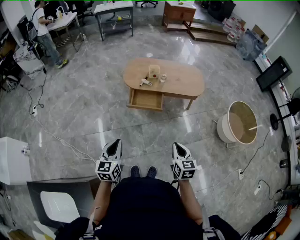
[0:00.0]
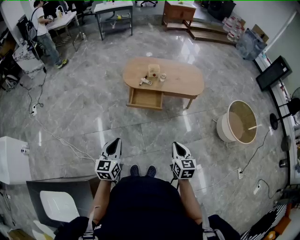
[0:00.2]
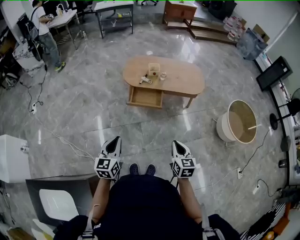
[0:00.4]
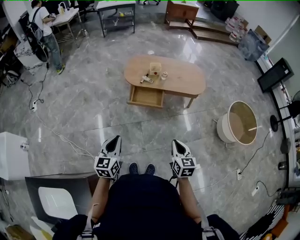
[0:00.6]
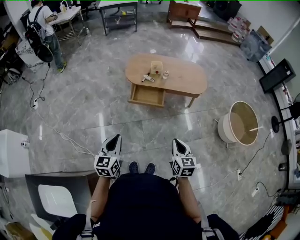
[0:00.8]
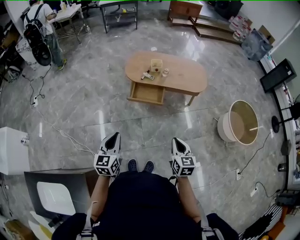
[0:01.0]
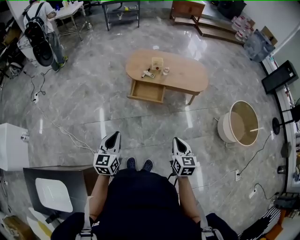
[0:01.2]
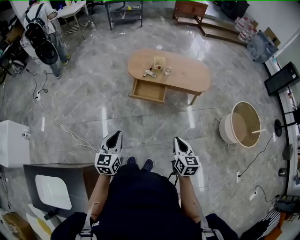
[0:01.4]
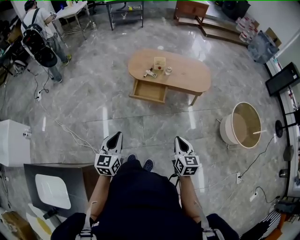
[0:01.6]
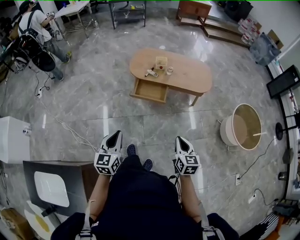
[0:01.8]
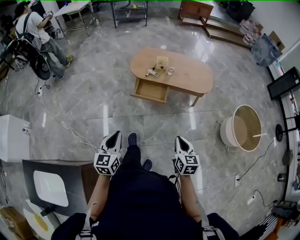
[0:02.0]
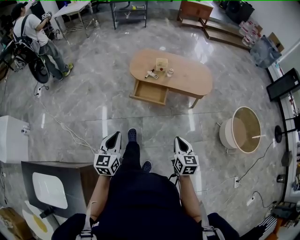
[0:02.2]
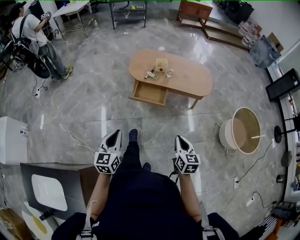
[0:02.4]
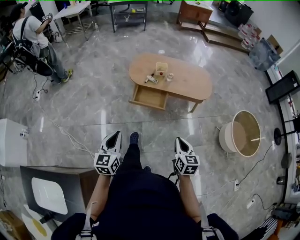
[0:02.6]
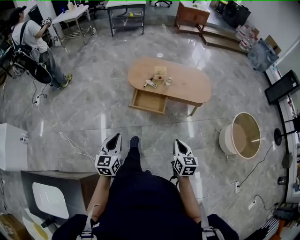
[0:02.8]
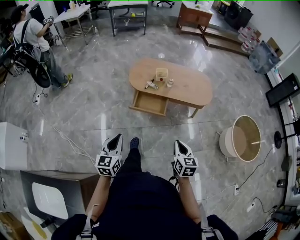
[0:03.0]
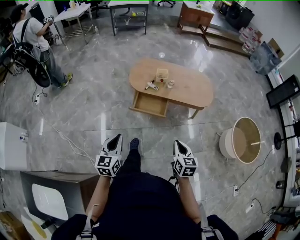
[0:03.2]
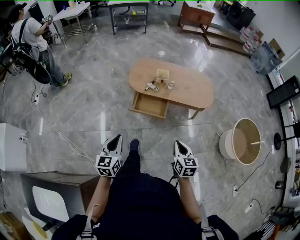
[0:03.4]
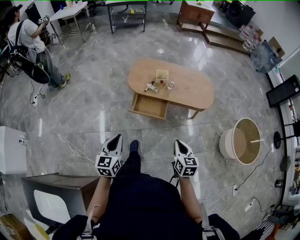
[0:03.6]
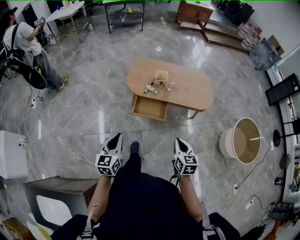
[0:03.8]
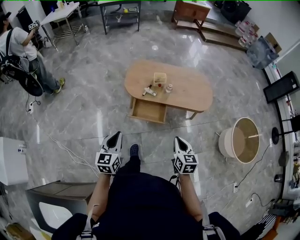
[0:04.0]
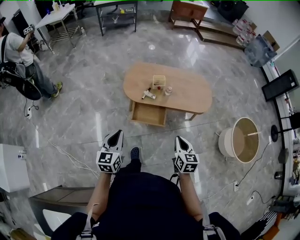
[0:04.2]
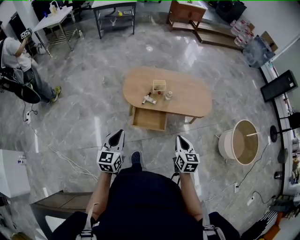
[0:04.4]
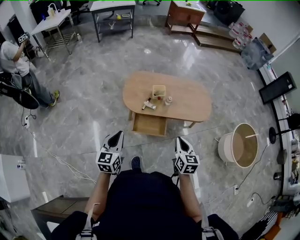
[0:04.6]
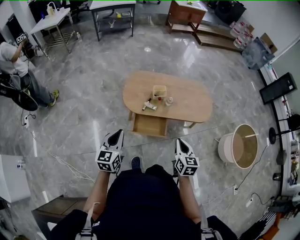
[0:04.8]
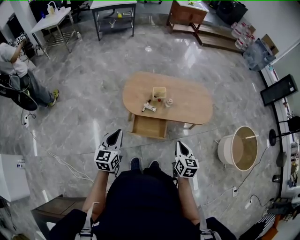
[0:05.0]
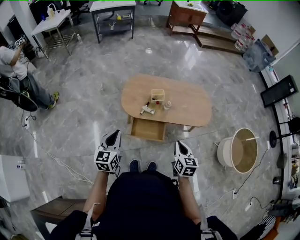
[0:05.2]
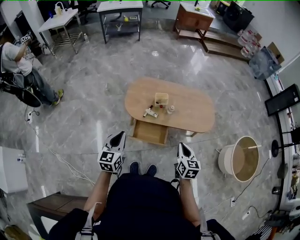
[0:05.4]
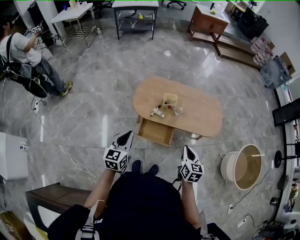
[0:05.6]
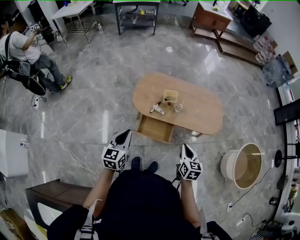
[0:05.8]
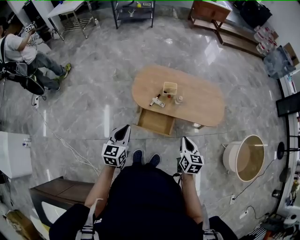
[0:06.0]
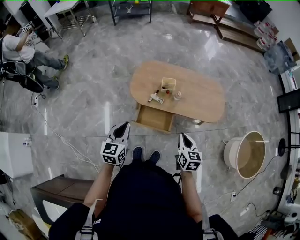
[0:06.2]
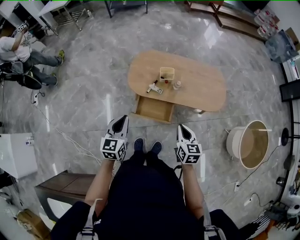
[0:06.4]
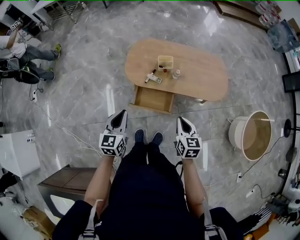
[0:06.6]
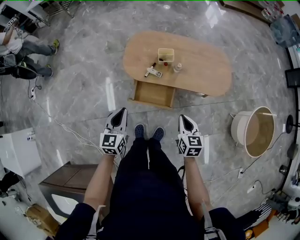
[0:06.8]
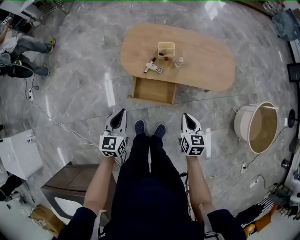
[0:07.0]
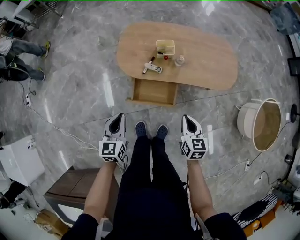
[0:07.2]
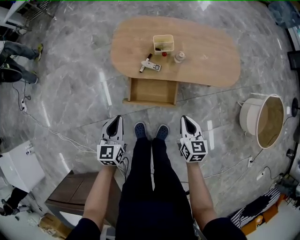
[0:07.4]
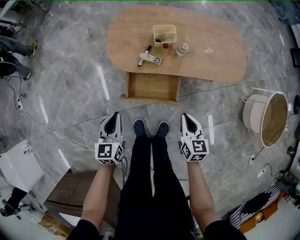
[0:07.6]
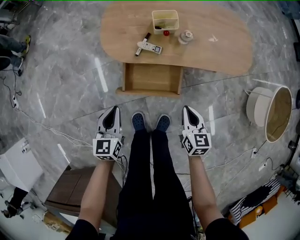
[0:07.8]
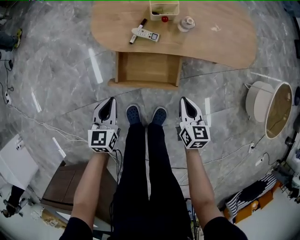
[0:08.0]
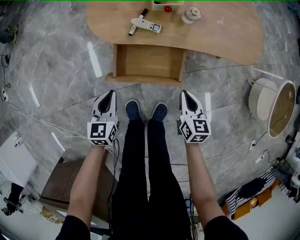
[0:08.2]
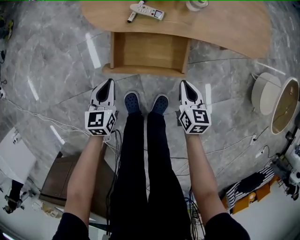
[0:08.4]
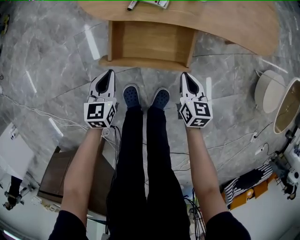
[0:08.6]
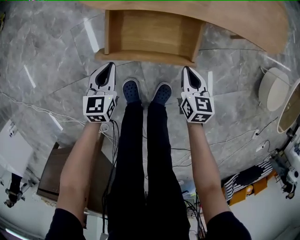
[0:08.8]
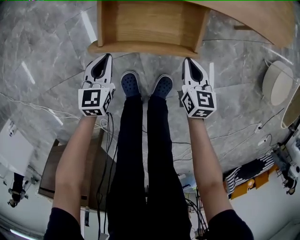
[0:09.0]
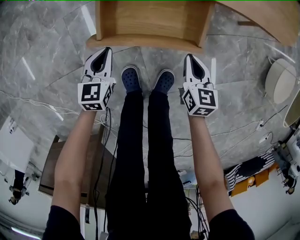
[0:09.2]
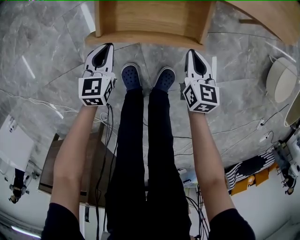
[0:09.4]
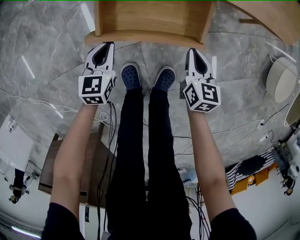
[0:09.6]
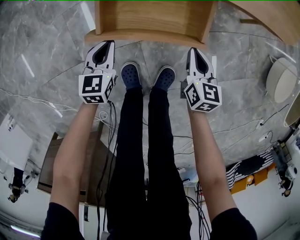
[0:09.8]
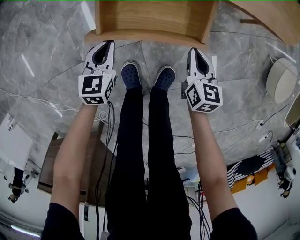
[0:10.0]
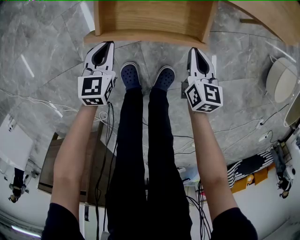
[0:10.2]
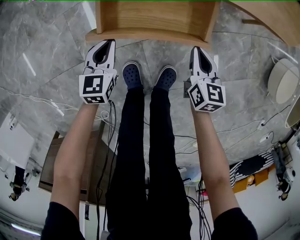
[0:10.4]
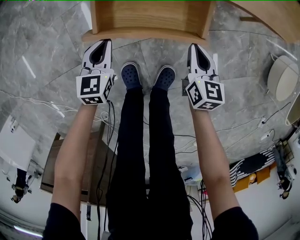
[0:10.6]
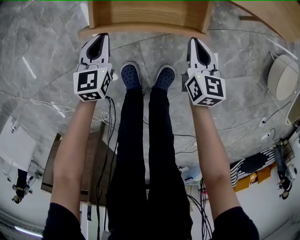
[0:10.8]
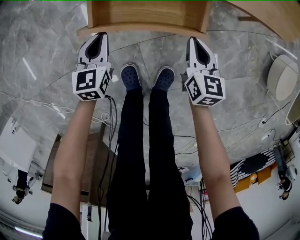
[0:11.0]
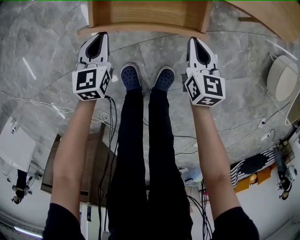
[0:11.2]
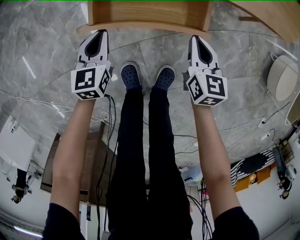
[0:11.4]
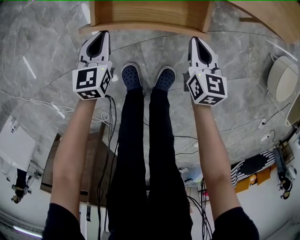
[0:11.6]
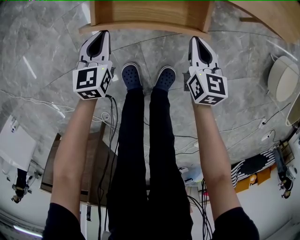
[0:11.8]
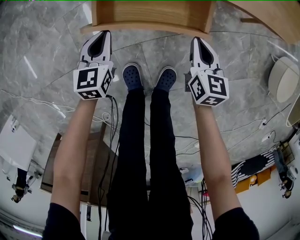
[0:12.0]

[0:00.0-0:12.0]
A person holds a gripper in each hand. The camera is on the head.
0:00.0 to 0:01.6: The left gripper heads to the right, covering about 5 cm.
0:01.6 to 0:03.0: Both grippers travel together forward, some 10 cm.
0:03.0 to 0:04.4: Both grippers travel together forward, approximately 25 cm.
0:04.4 to 0:06.0: The grippers both shift forward by some 10 cm.
0:06.0 to 0:07.6: The grippers both shift downward by some 25 cm.
0:07.6 to 0:09.0: The two grippers go about 30 cm downward.
0:09.0 to 0:12.0: The grippers move only a little.

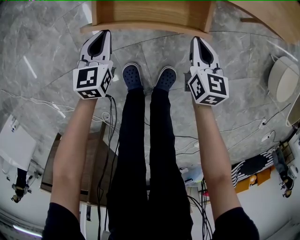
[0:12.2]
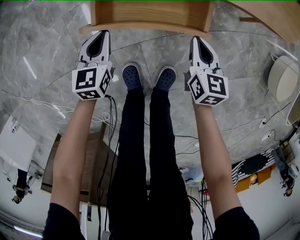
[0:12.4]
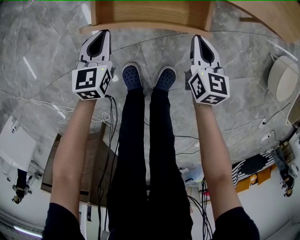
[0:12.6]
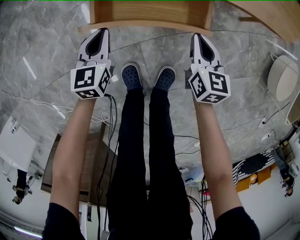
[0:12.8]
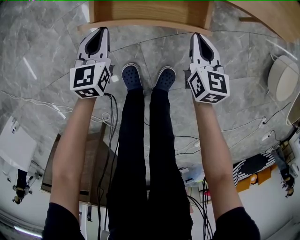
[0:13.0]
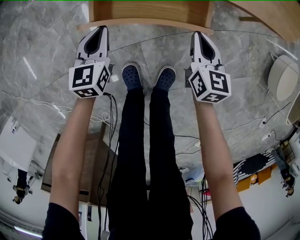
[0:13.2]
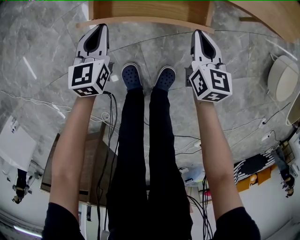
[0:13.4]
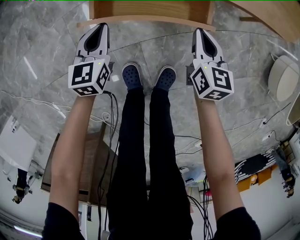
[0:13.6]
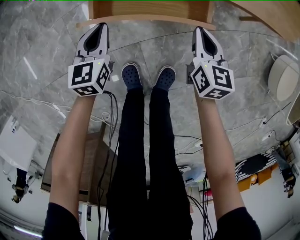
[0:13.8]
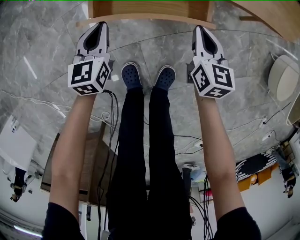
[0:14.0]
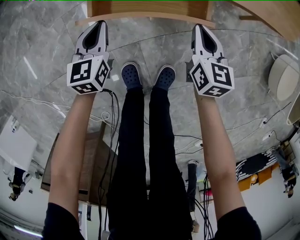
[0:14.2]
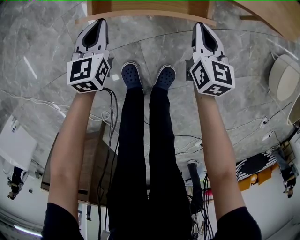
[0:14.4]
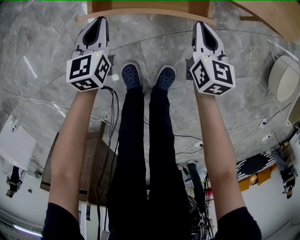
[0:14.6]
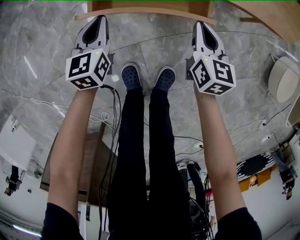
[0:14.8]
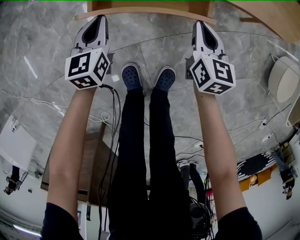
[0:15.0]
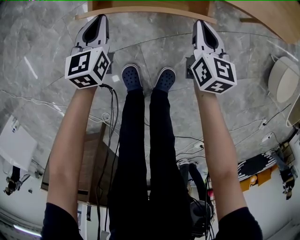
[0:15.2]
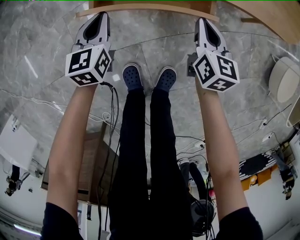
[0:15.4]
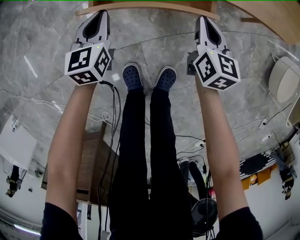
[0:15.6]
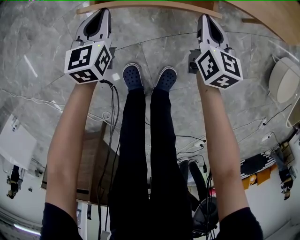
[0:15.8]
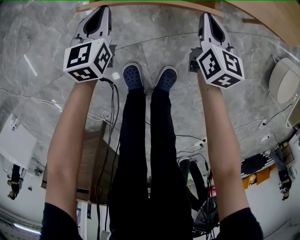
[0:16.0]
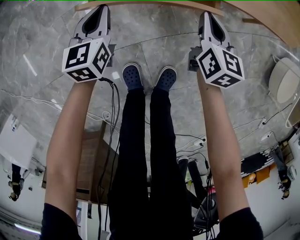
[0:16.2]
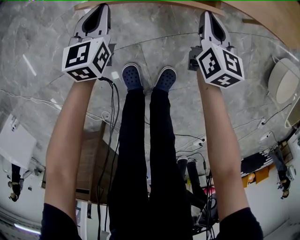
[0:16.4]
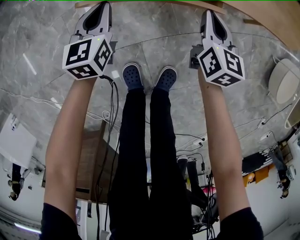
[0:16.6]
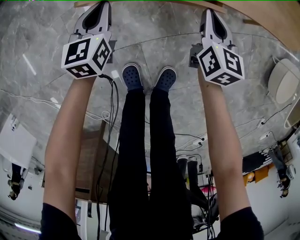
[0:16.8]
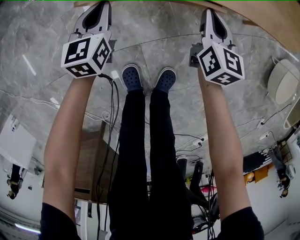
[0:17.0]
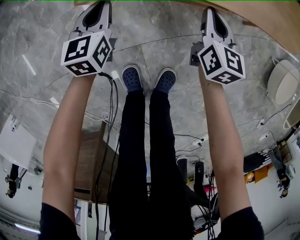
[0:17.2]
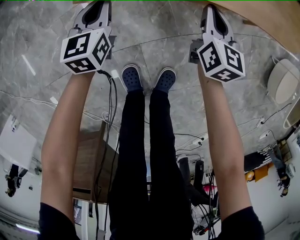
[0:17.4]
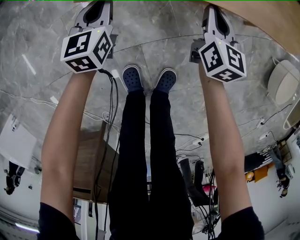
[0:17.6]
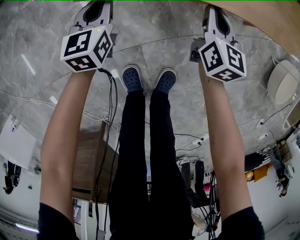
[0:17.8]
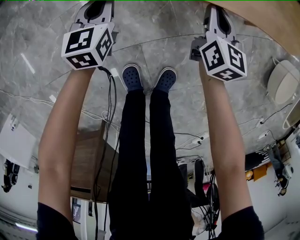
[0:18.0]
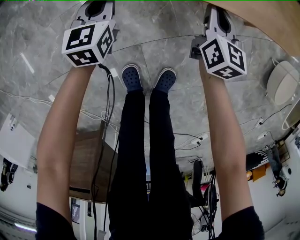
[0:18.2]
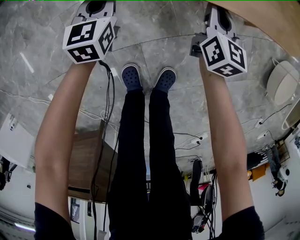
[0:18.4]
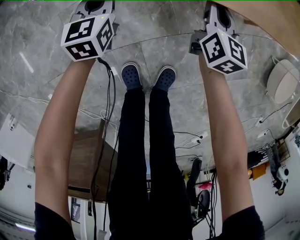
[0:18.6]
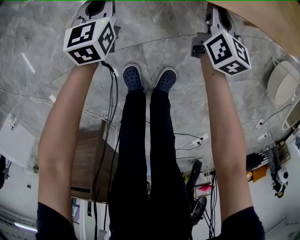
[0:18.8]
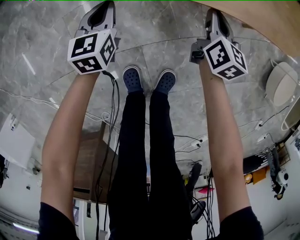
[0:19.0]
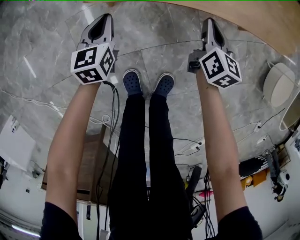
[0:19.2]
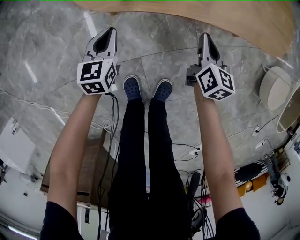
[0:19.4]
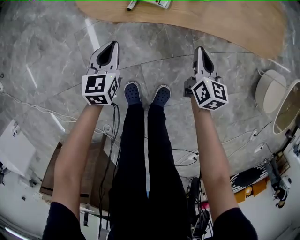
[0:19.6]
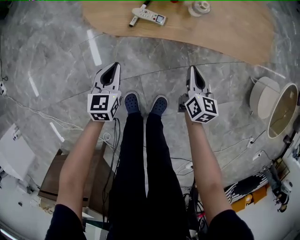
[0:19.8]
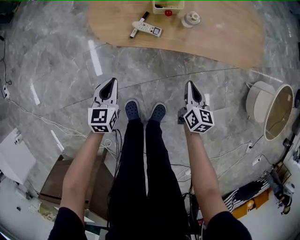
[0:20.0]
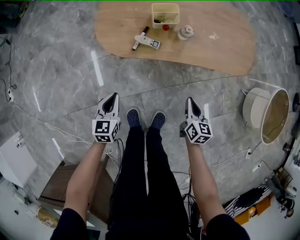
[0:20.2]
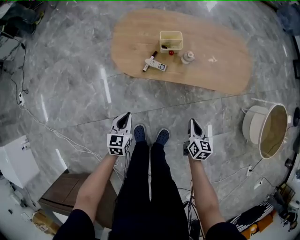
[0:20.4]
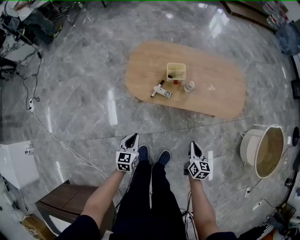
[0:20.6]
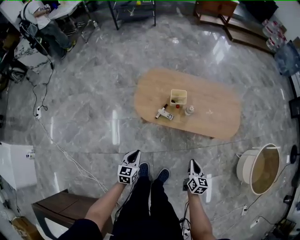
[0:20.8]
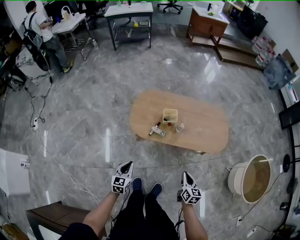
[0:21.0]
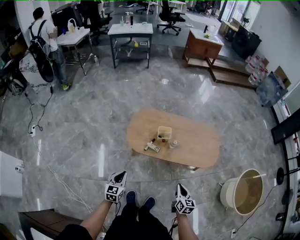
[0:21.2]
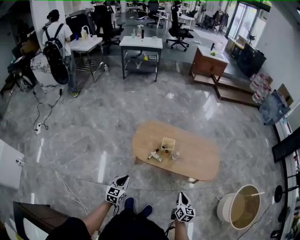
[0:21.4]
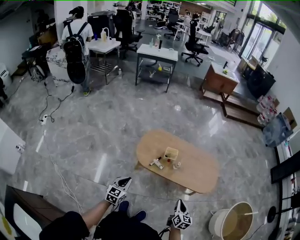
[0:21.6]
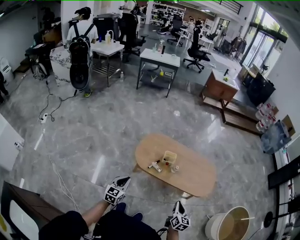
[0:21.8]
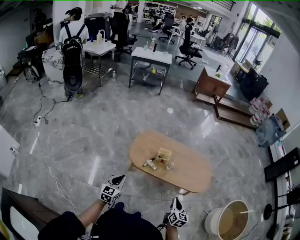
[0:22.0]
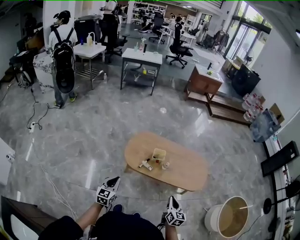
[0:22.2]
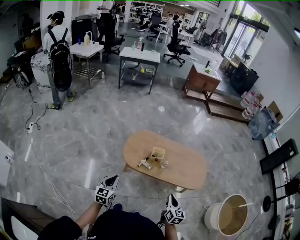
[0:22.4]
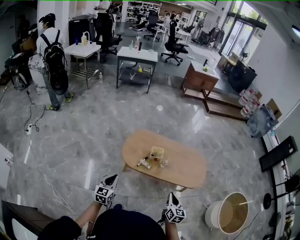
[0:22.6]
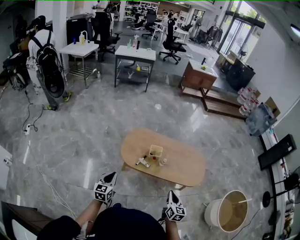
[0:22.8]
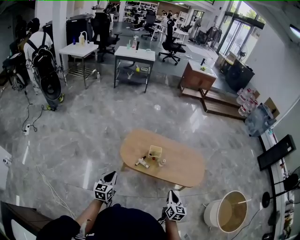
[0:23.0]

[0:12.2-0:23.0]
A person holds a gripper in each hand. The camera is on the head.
0:12.2 to 0:13.8: There are only small adjustments of the grippers.
0:13.8 to 0:15.2: The grippers stay close to where they were, moving slightly.
0:15.2 to 0:16.8: The two grippers go about 5 cm forward.
0:16.8 to 0:18.4: The left gripper moves approximately 5 cm.
0:18.4 to 0:20.0: The two grippers go some 20 cm upward and backward.
0:20.0 to 0:21.4: The two grippers go about 35 cm upward.
0:21.4 to 0:23.0: The grippers both shift upward by some 5 cm.

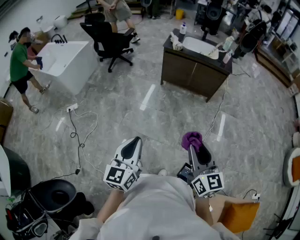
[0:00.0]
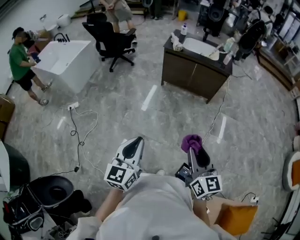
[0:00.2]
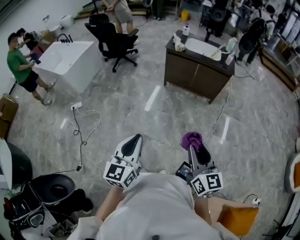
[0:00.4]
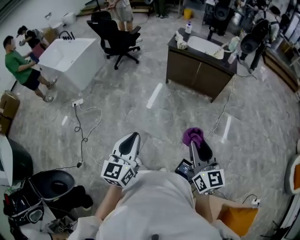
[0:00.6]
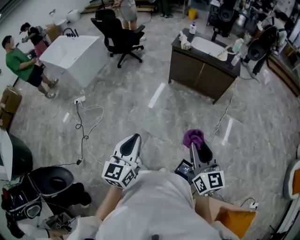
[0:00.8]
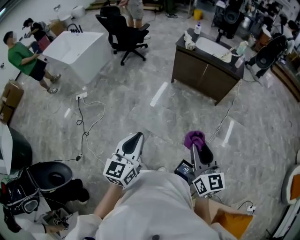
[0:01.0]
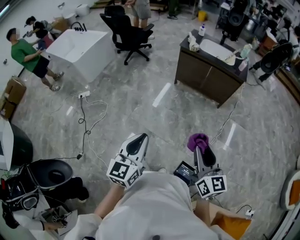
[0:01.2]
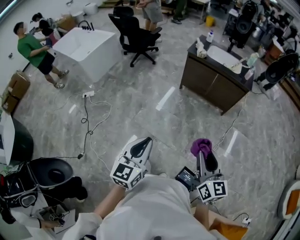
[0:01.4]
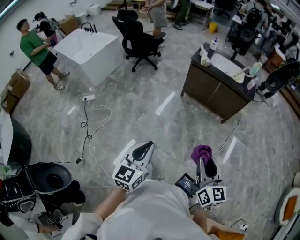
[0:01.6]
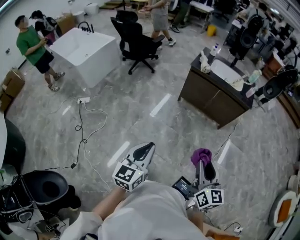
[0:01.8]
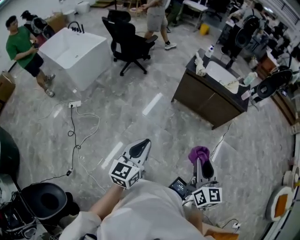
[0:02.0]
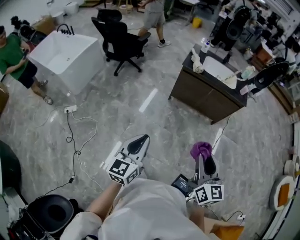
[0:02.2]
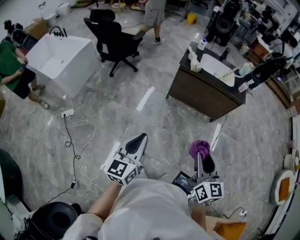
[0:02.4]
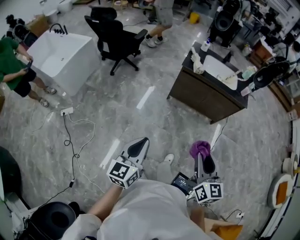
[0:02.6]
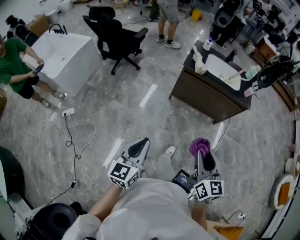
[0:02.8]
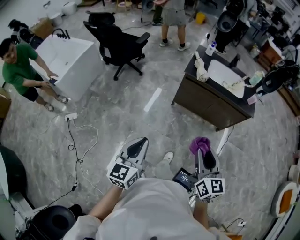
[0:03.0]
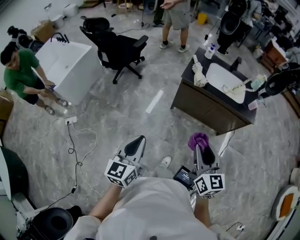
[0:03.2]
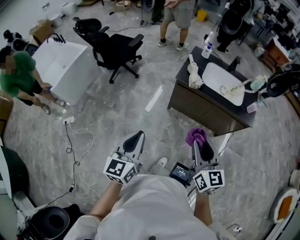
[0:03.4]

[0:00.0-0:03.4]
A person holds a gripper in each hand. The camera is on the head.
0:00.0 to 0:01.6: The grippers both shift forward by some 5 cm.
0:01.6 to 0:03.4: The pair of grippers is taken forward, about 50 cm.
